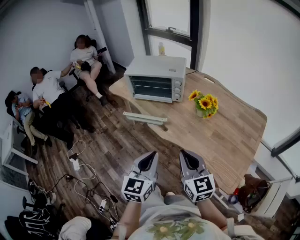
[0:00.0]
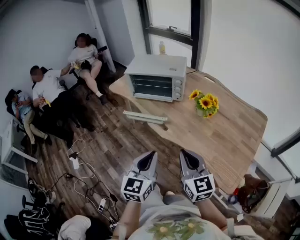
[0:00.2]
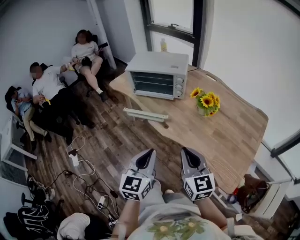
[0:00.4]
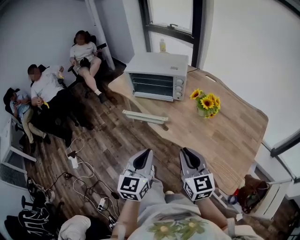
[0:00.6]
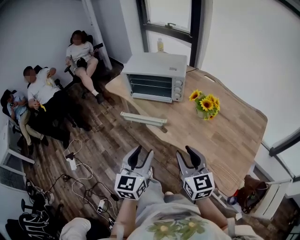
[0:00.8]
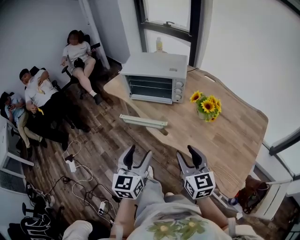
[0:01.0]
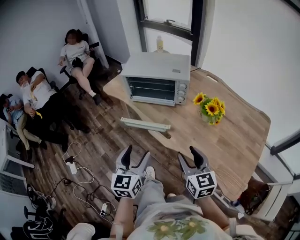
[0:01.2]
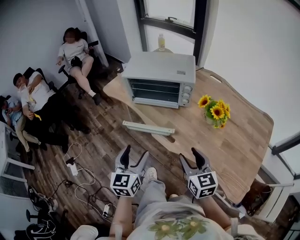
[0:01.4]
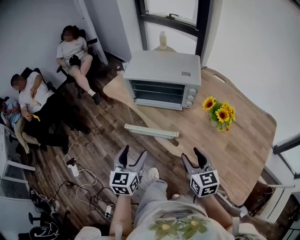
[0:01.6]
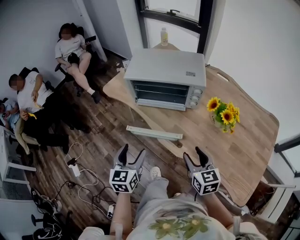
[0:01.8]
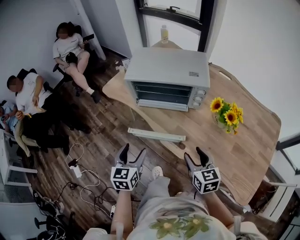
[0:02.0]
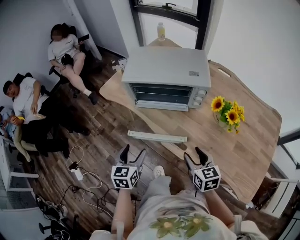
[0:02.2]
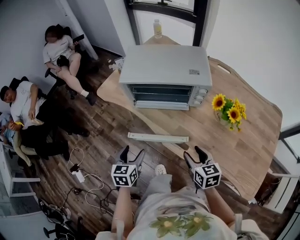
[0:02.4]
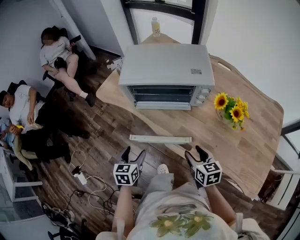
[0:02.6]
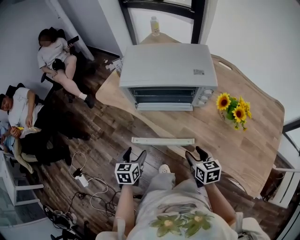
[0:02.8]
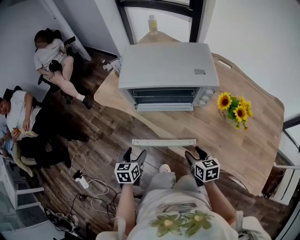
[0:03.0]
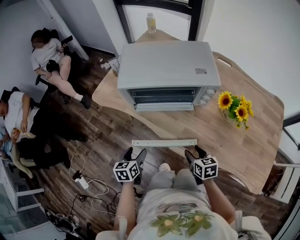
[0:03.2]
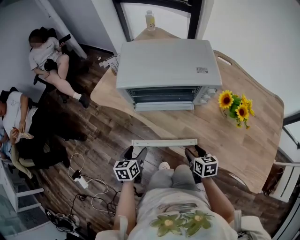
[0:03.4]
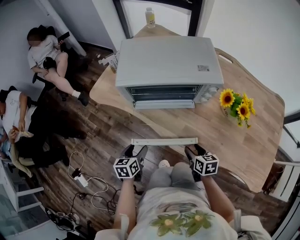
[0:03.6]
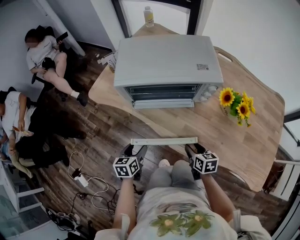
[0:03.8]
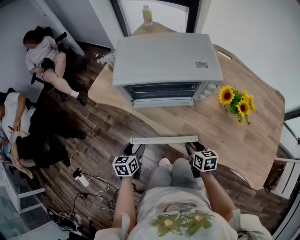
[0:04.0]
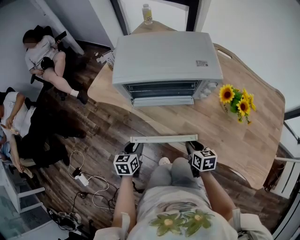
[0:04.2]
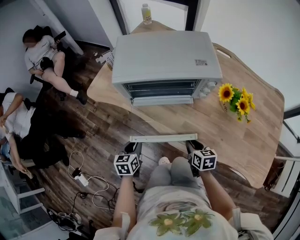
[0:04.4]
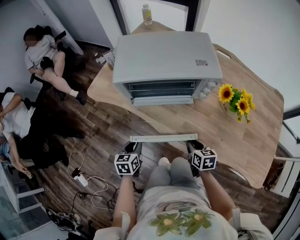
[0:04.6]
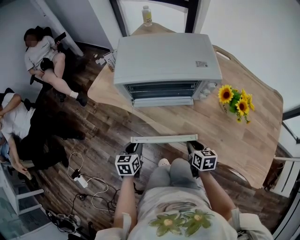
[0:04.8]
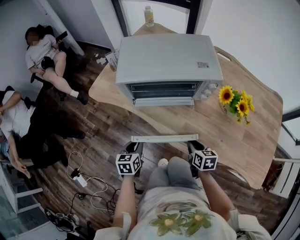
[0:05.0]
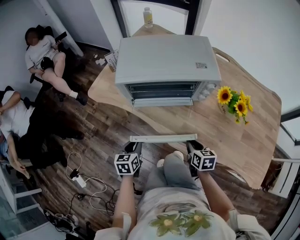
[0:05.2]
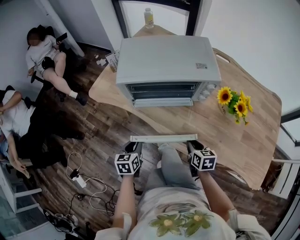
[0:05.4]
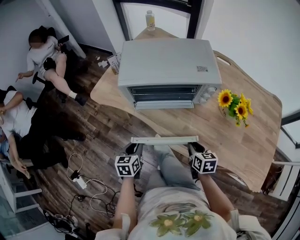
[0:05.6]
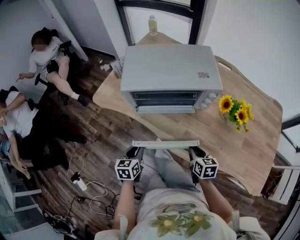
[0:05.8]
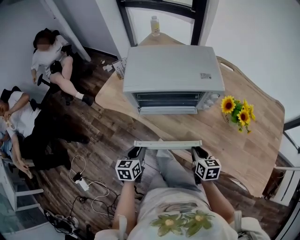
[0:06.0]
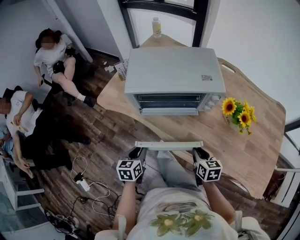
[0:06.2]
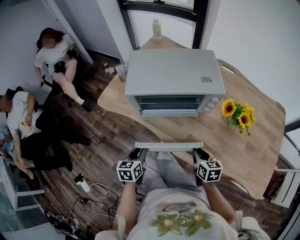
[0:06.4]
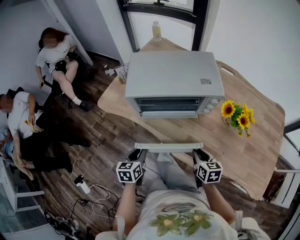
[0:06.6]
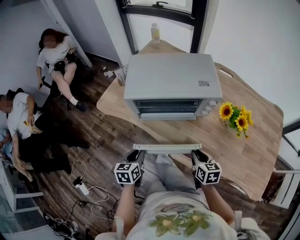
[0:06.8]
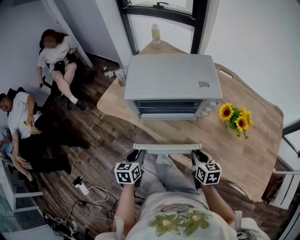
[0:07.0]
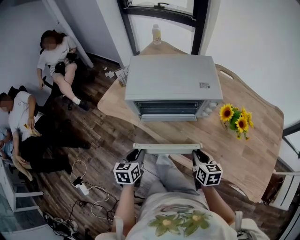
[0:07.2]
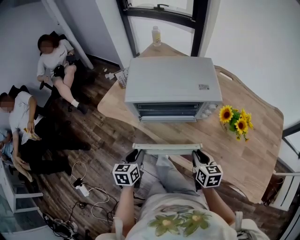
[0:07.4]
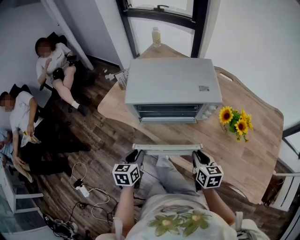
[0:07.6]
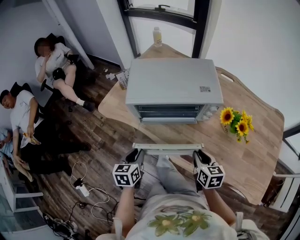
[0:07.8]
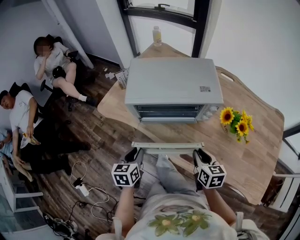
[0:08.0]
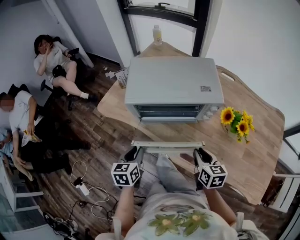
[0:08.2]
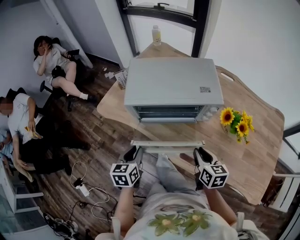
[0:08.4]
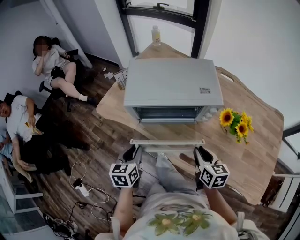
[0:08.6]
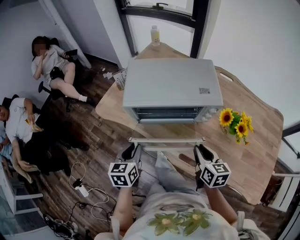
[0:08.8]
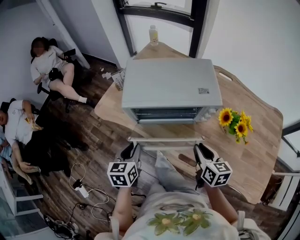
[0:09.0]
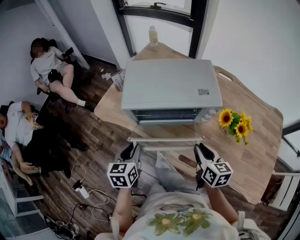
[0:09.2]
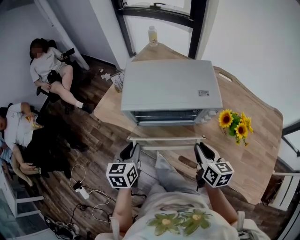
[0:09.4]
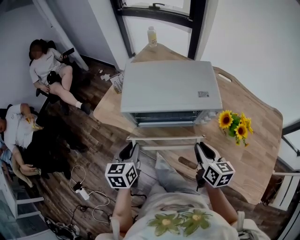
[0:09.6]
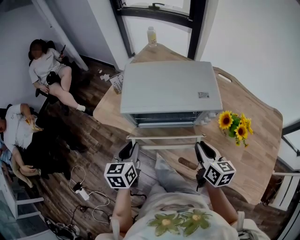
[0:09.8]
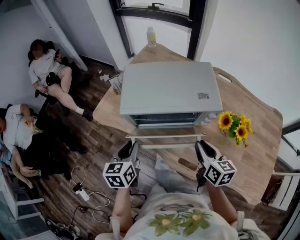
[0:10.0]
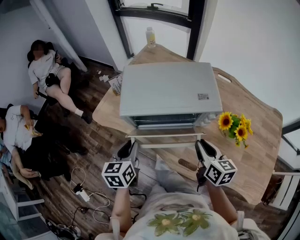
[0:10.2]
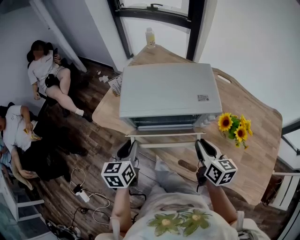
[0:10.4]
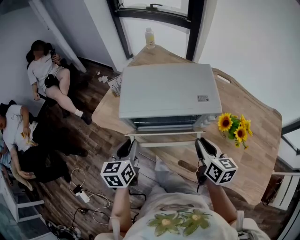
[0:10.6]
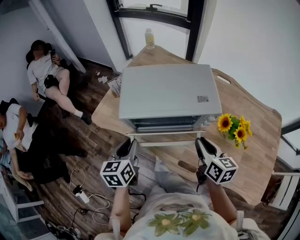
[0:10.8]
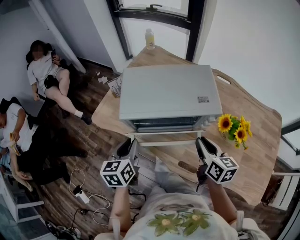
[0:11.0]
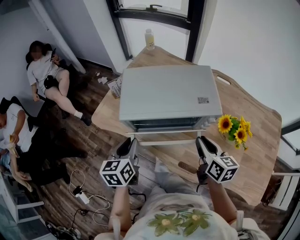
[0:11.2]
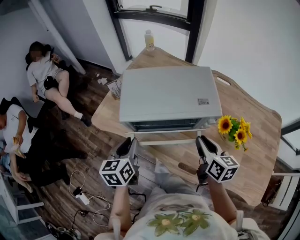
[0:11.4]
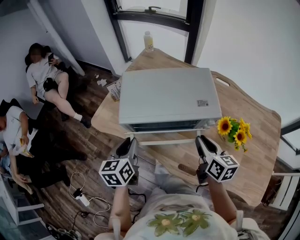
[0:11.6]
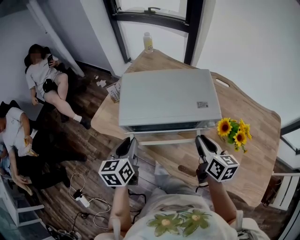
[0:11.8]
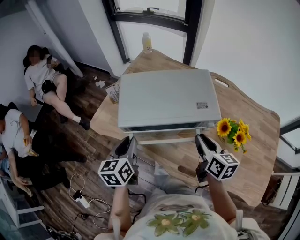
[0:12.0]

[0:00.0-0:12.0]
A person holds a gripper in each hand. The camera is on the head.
0:00.0 to 0:01.6: The left gripper is displaced forward, to the left and downward by some 25 cm, and opens. The right gripper is displaced forward and downward by roughly 20 cm, and opens.
0:01.6 to 0:03.0: The right gripper shifts roughly 20 cm downward and forward, and rotates about 30 degrees, while the left gripper heads downward, forward and to the left, covering approximately 25 cm, and rotates some 30 degrees.
0:03.0 to 0:04.4: The right gripper heads downward, covering roughly 5 cm, and closes up. Meanwhile the left gripper closes its fingers.
0:04.4 to 0:06.0: The grippers make only small movements.
0:06.0 to 0:07.6: The grippers both shift upward by about 5 cm.
0:07.6 to 0:09.0: The grippers both shift upward by approximately 5 cm.
0:09.0 to 0:10.4: The left gripper changes place by approximately 5 cm, while the right gripper ends up some 5 cm from where it was.
0:10.4 to 0:12.0: The right gripper ends up roughly 5 cm from where it was. Meanwhile the left gripper ends up roughly 5 cm from where it was.

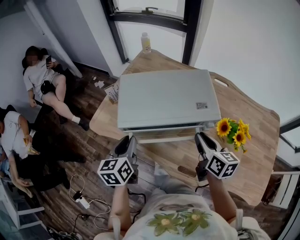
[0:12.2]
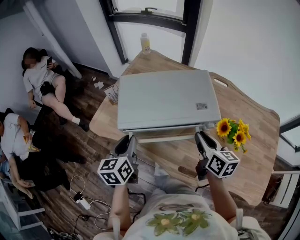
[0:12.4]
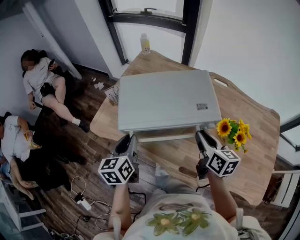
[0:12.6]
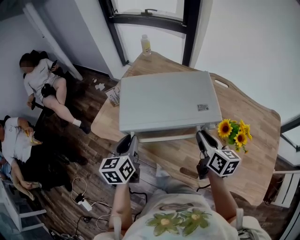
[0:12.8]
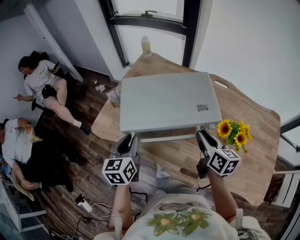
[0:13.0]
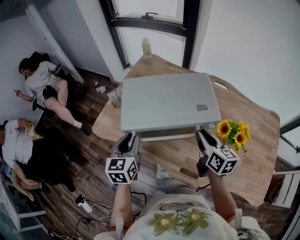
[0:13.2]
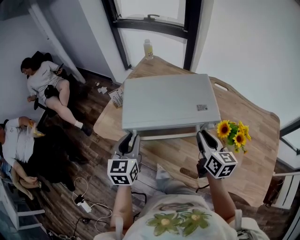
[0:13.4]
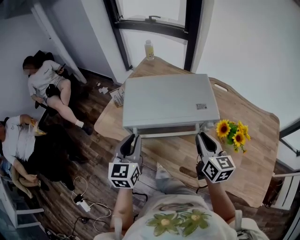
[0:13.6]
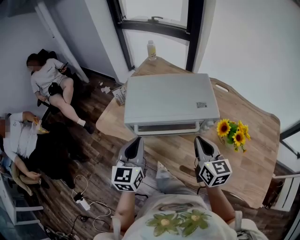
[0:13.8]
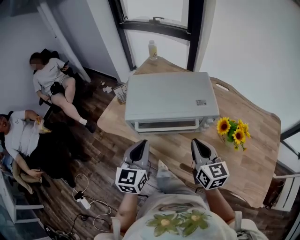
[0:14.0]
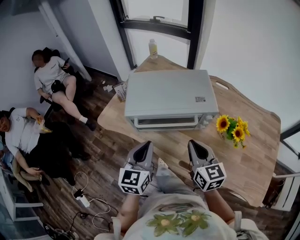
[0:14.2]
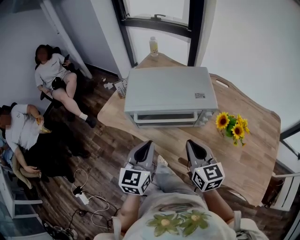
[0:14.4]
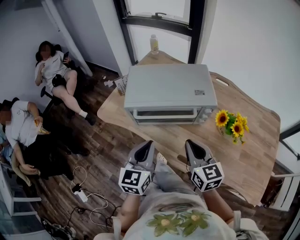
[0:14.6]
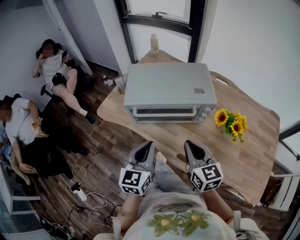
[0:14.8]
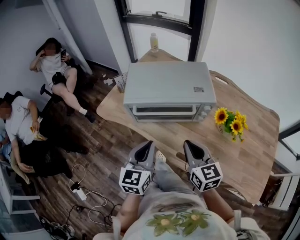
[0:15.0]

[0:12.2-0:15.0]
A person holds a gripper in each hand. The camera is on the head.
0:12.2 to 0:13.6: The left gripper changes its angle by roughly 20 degrees.
0:13.6 to 0:15.0: The left gripper is displaced backward and to the right by roughly 15 cm; the right gripper is displaced backward and to the left by about 10 cm.

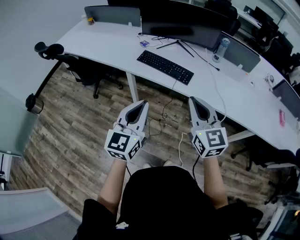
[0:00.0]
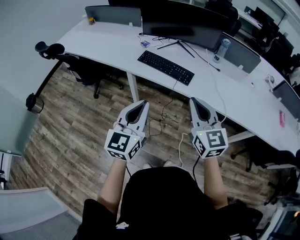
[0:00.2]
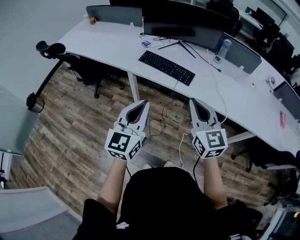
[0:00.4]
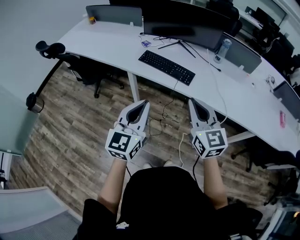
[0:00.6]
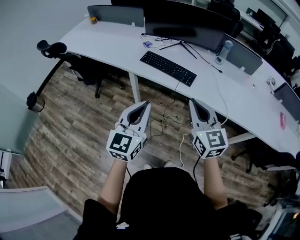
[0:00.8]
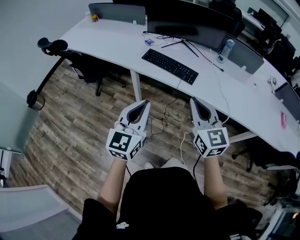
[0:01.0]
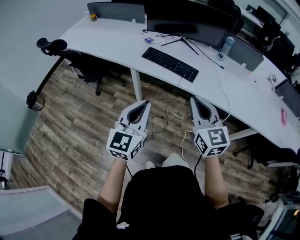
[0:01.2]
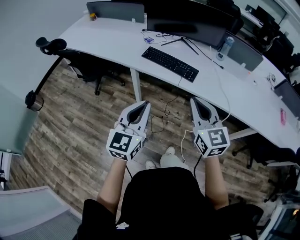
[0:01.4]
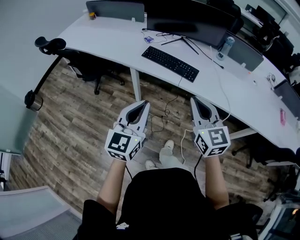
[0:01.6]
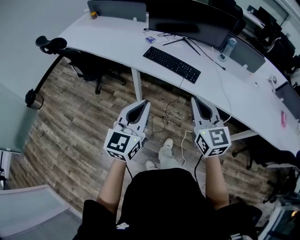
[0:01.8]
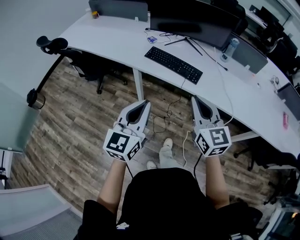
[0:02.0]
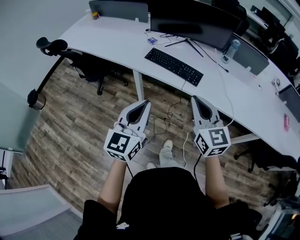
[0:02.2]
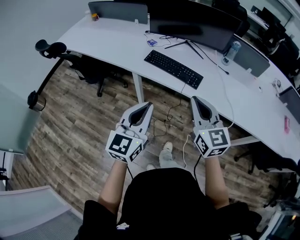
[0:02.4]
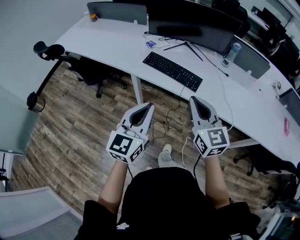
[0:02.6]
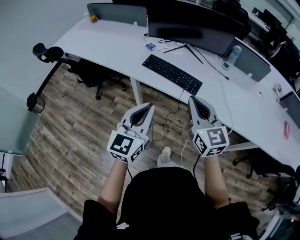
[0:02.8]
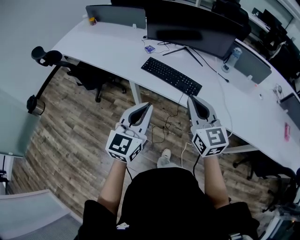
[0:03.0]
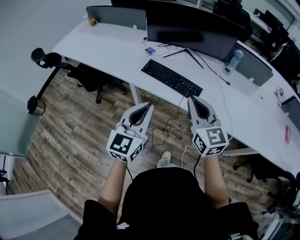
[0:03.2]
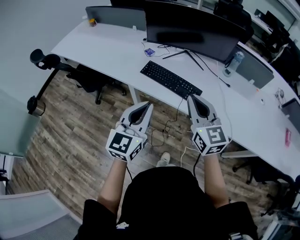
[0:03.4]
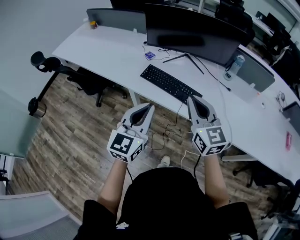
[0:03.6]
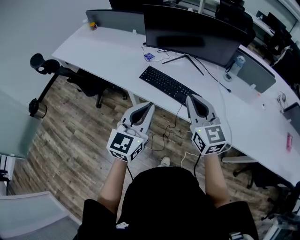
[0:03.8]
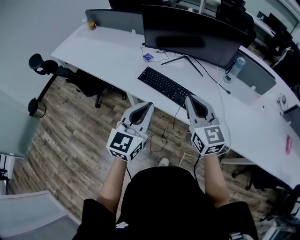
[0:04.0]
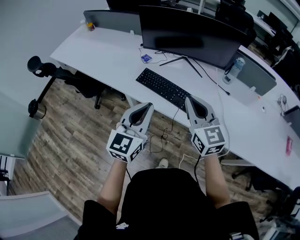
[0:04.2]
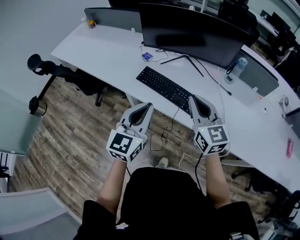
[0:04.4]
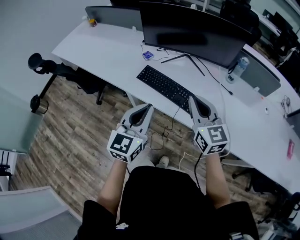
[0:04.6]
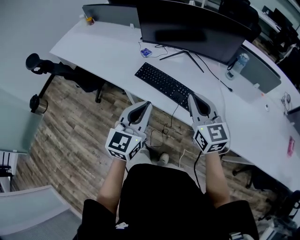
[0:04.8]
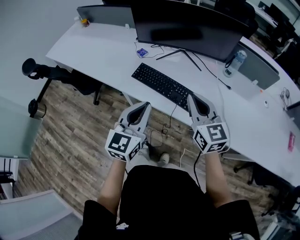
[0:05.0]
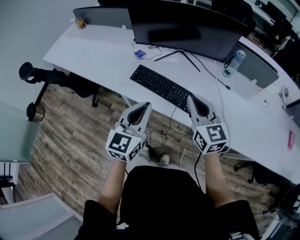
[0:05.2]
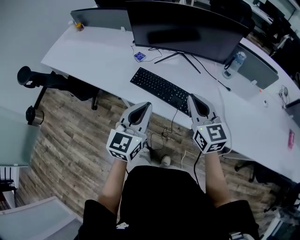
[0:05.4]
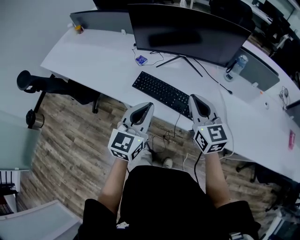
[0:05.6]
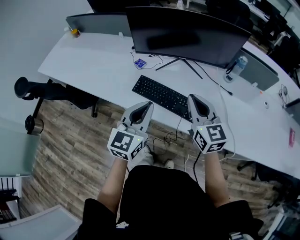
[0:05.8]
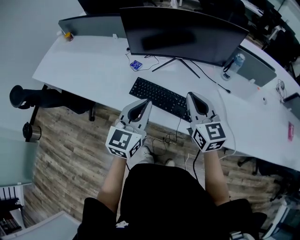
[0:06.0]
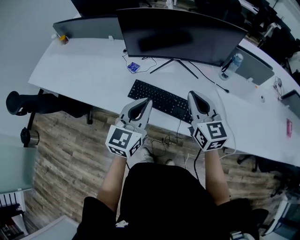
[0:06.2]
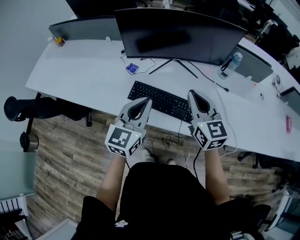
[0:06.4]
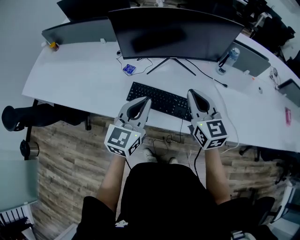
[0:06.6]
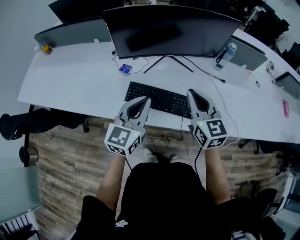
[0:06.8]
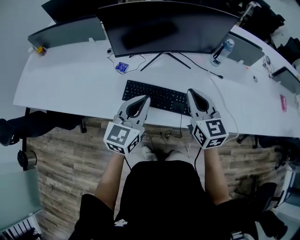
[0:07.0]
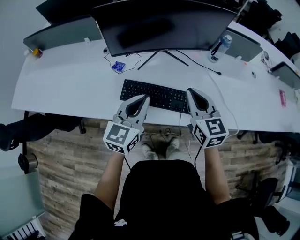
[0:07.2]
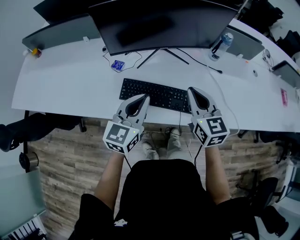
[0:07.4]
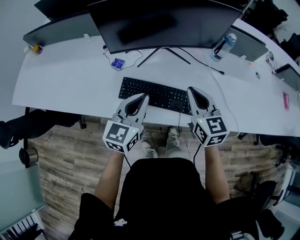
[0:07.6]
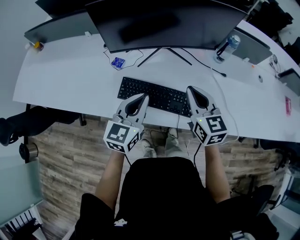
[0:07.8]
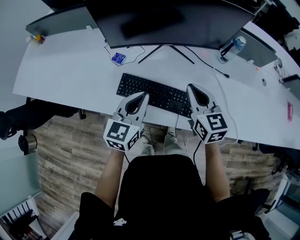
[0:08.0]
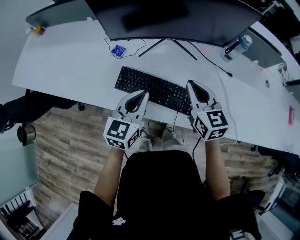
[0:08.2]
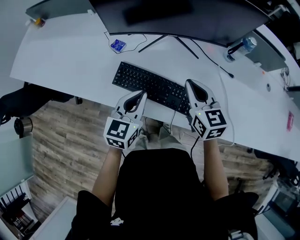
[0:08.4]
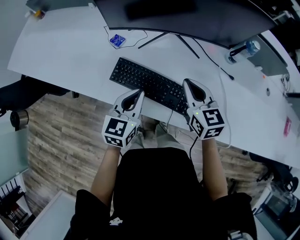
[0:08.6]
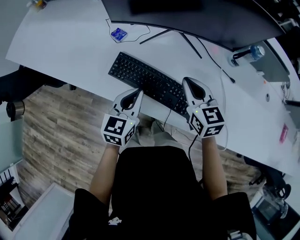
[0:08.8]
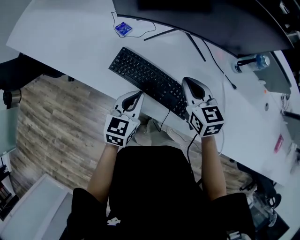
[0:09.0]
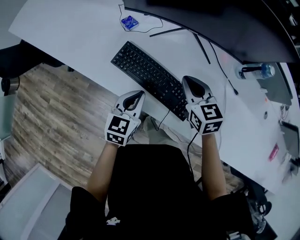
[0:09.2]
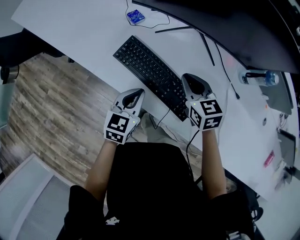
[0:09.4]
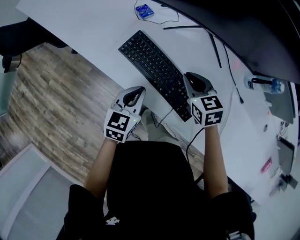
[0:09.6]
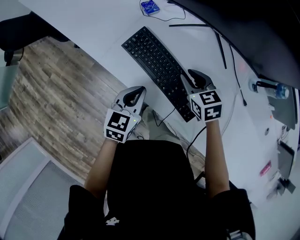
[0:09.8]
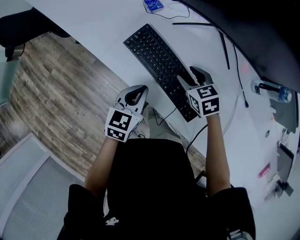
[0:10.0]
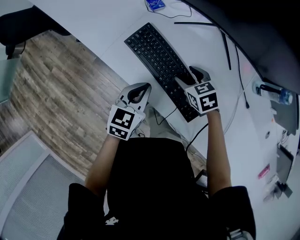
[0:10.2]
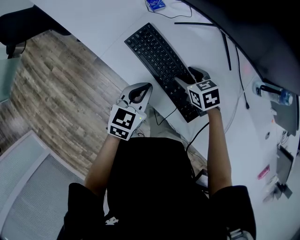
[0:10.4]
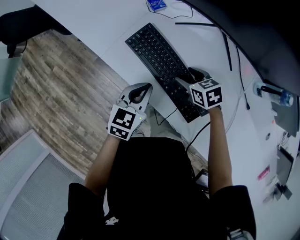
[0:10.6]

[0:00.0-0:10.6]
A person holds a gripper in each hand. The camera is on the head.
0:00.0 to 0:01.6: There are only small adjustments of the grippers.
0:01.6 to 0:03.0: The grippers both shift forward by some 10 cm.
0:03.0 to 0:04.6: The two grippers go approximately 15 cm forward and to the right.
0:04.6 to 0:06.0: The two grippers go about 10 cm forward.
0:06.0 to 0:07.6: The left gripper heads forward and downward, covering about 10 cm, while the right gripper heads downward, covering roughly 5 cm.
0:07.6 to 0:09.0: The right gripper is displaced downward and forward by some 15 cm, and changes its angle by approximately 30 degrees. The left gripper heads downward, covering about 15 cm, and swivels about 30 degrees.
0:09.0 to 0:10.6: The right gripper goes roughly 15 cm downward, turns by about 40 degrees, and opens its fingers, while the left gripper goes some 5 cm downward.
